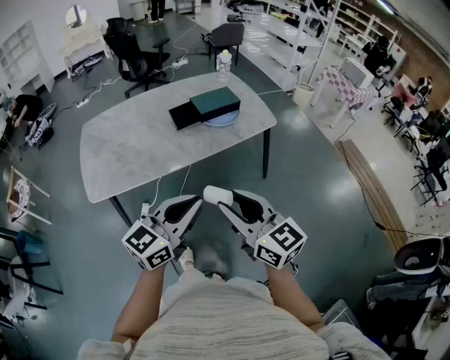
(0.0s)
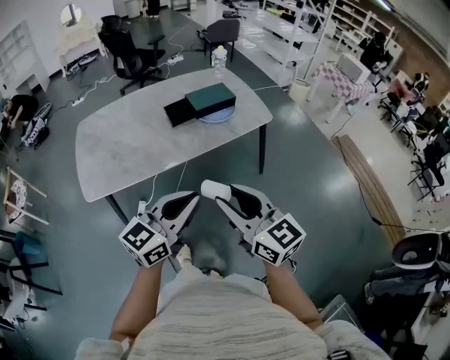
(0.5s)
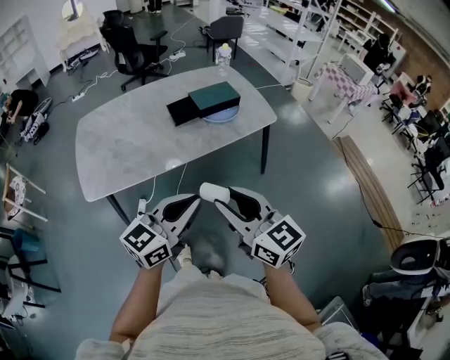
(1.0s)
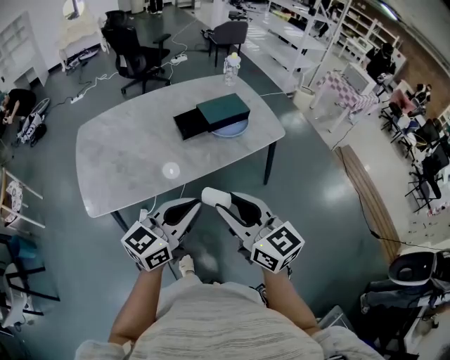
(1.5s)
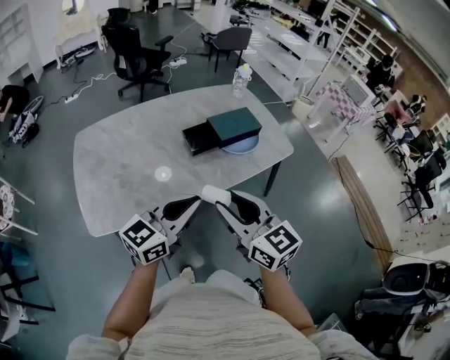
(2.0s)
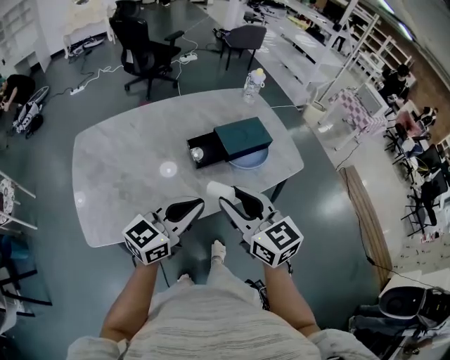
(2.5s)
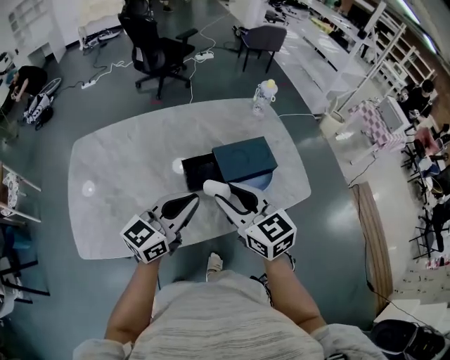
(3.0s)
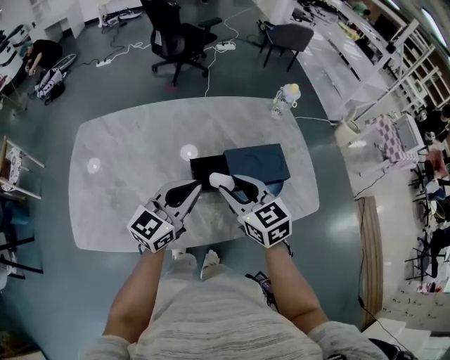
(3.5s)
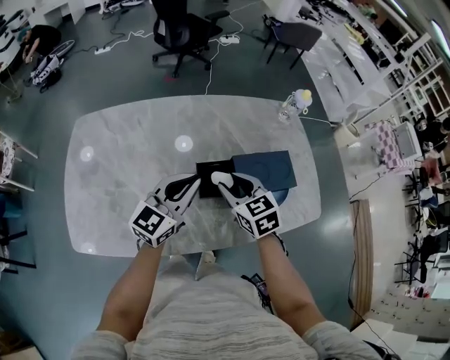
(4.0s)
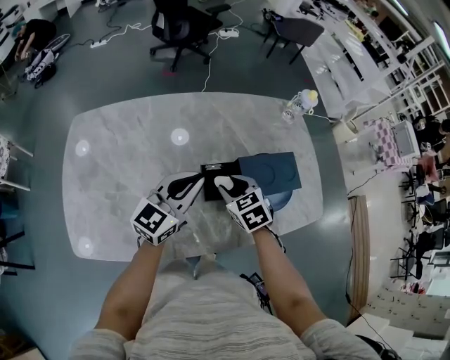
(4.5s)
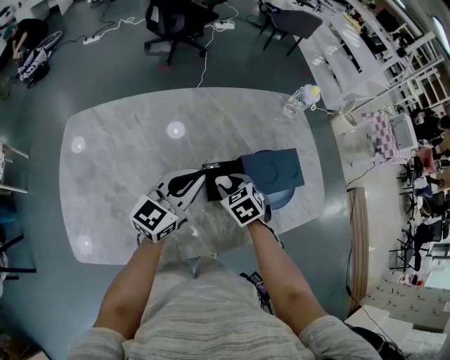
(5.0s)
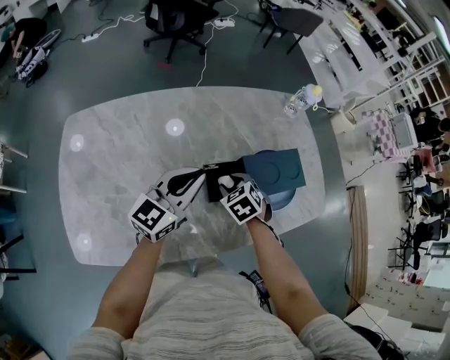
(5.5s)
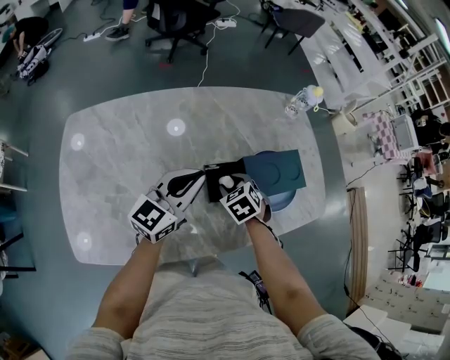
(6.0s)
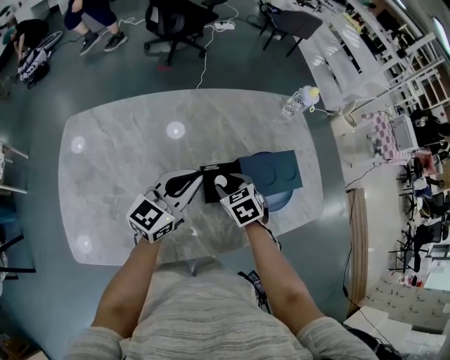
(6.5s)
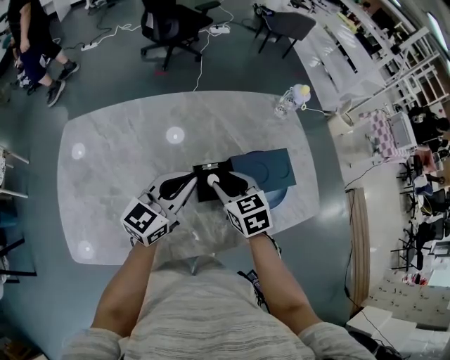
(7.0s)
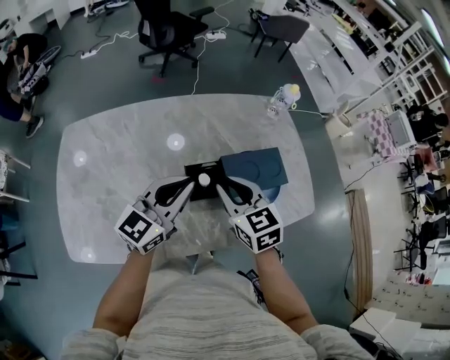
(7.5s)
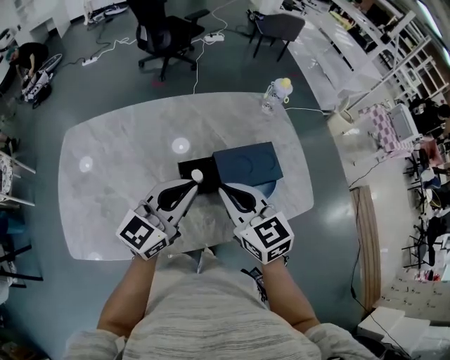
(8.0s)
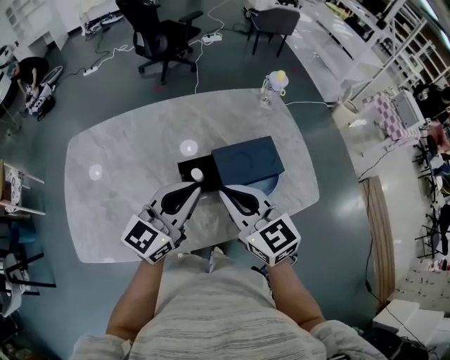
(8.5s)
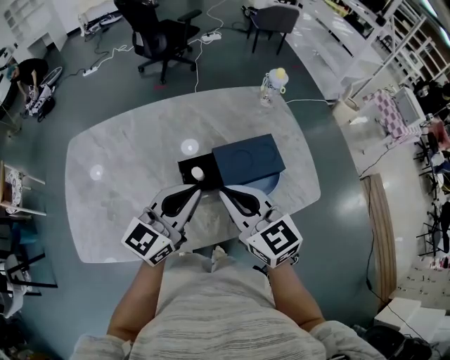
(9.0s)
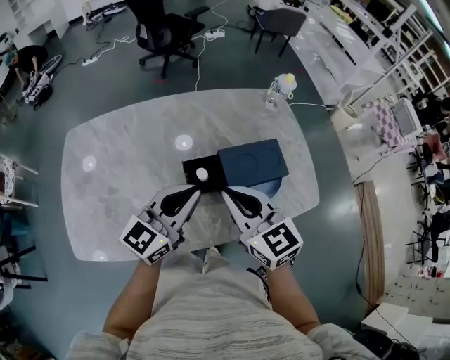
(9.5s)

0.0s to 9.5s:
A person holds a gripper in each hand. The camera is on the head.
0.0s to 2.0s: The grippers both shift forward and to the left by roughly 25 cm.
2.0s to 4.0s: The left gripper travels forward by about 35 cm, and changes its angle by about 30 degrees; the right gripper travels forward and downward by approximately 40 cm, and turns by about 30 degrees.
4.0s to 5.5s: The left gripper changes place by some 5 cm; the right gripper shifts approximately 10 cm downward, and swivels some 30 degrees.
5.5s to 7.5s: The left gripper shifts by some 10 cm. Meanwhile the right gripper travels upward by about 15 cm, and tilts its fingers approximately 30 degrees upward.
7.5s to 9.5s: The right gripper goes roughly 10 cm upward and backward.

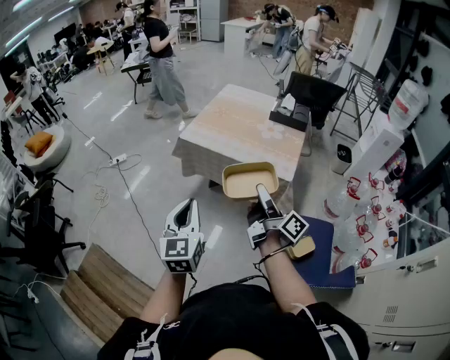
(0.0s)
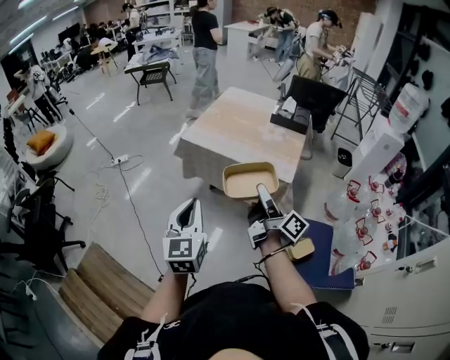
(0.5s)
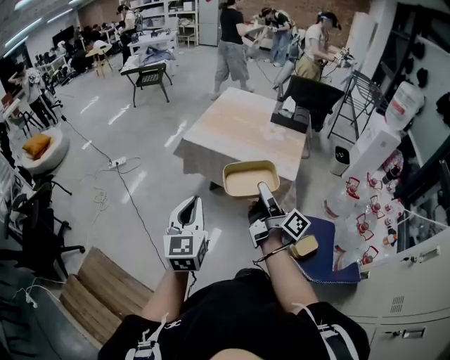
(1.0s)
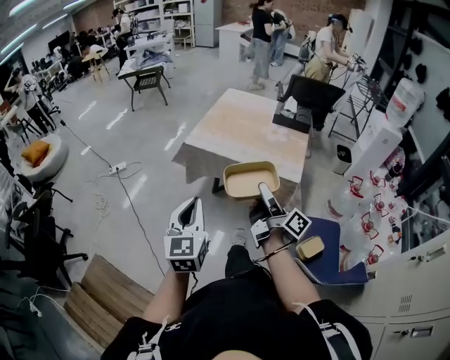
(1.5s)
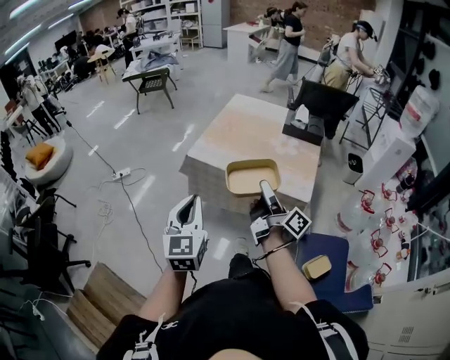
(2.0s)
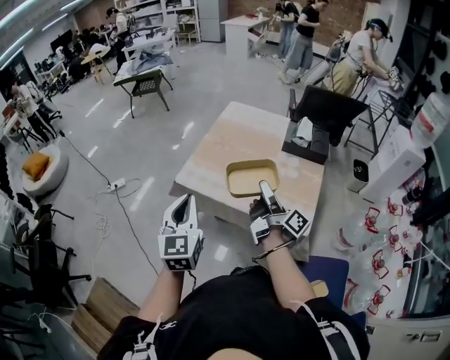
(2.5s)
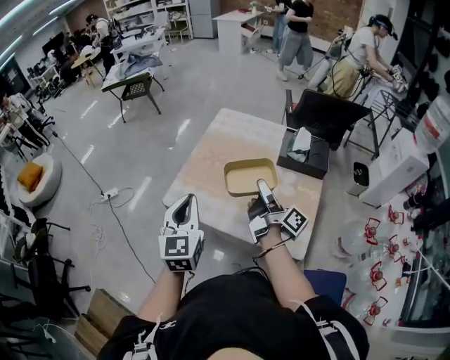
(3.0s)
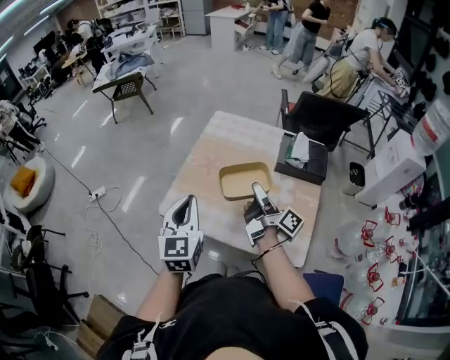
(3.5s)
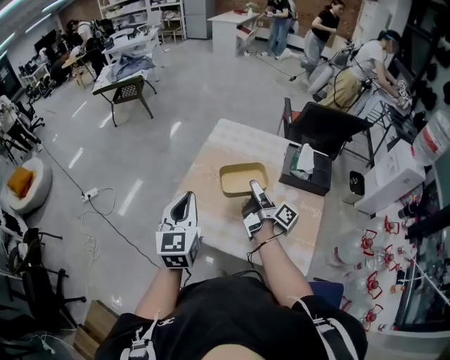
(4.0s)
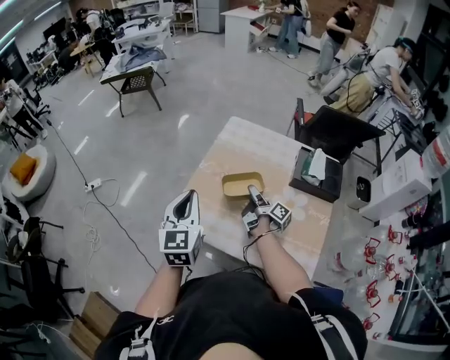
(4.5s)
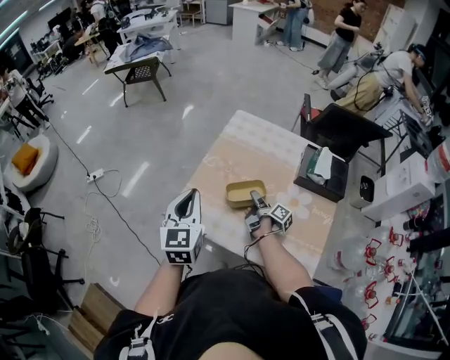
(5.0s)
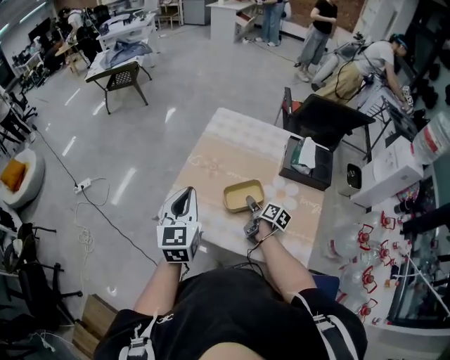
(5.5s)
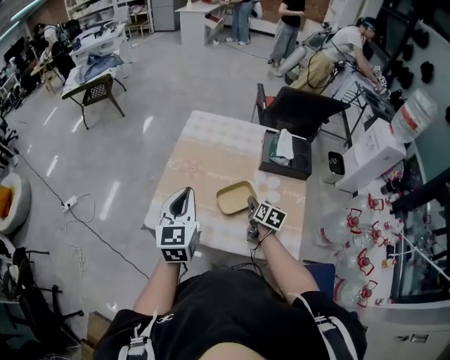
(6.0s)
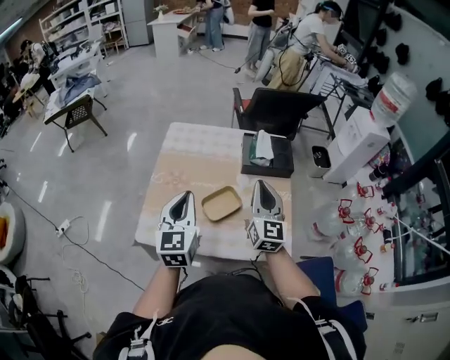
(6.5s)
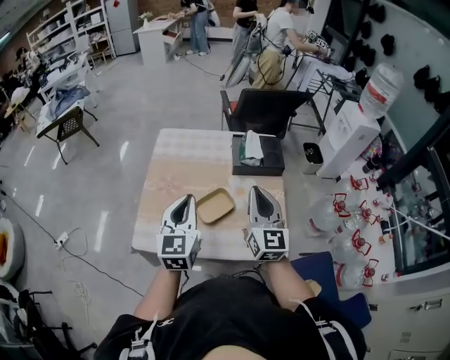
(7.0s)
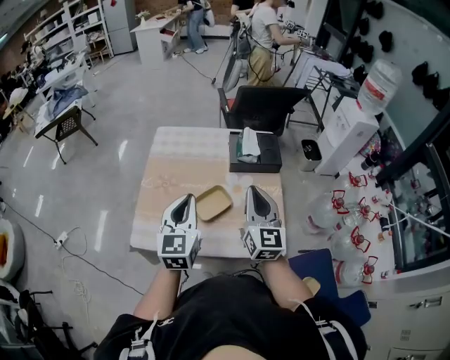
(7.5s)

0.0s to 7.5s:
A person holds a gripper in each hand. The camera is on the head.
0.0s to 2.0s: Both grippers move forward, about 15 cm.
2.0s to 4.0s: Both grippers are carried forward, approximately 60 cm.
4.0s to 5.5s: The right gripper moves downward, approximately 20 cm, and points its fingers roughly 40 degrees further downward.
5.5s to 7.5s: The left gripper changes place by about 15 cm, and rotates some 20 degrees. Meanwhile the right gripper is displaced upward by approximately 30 cm, tilts its fingers about 30 degrees upward, and closes.

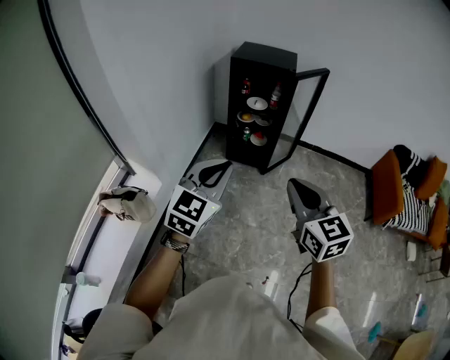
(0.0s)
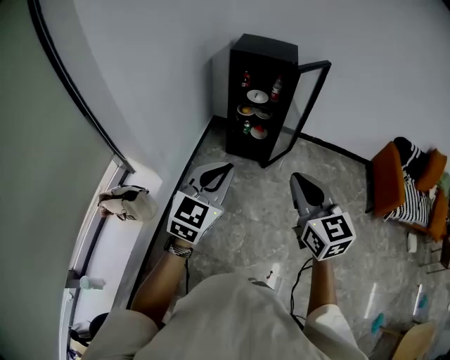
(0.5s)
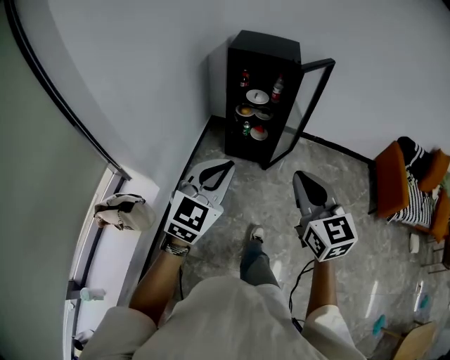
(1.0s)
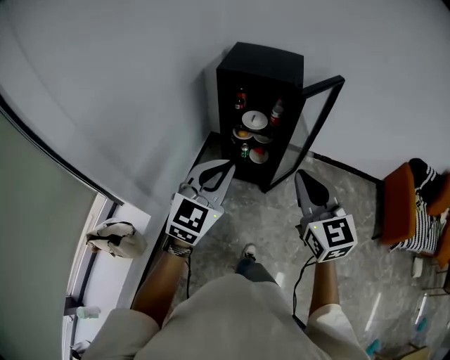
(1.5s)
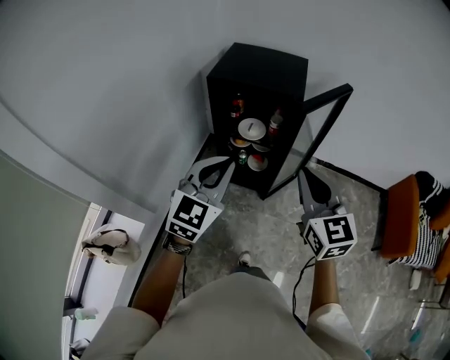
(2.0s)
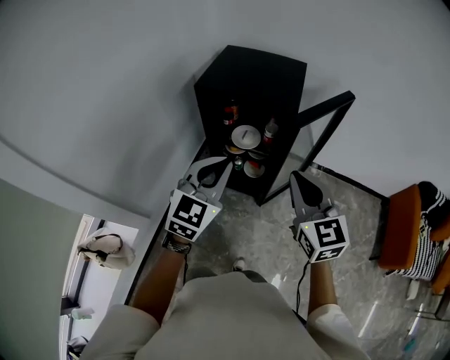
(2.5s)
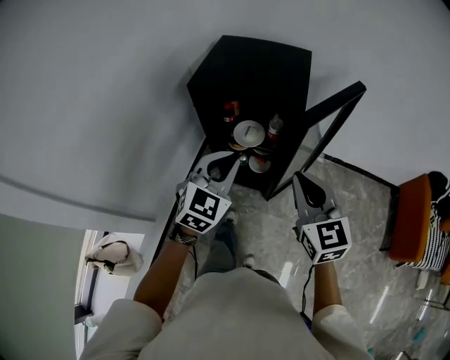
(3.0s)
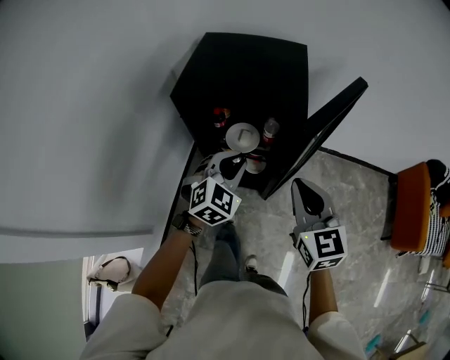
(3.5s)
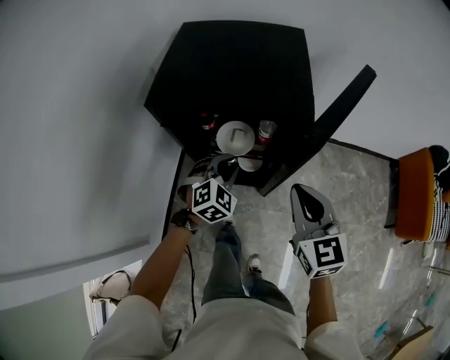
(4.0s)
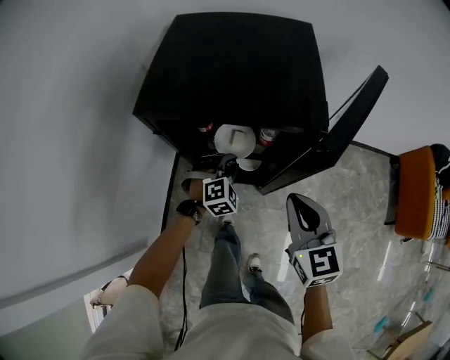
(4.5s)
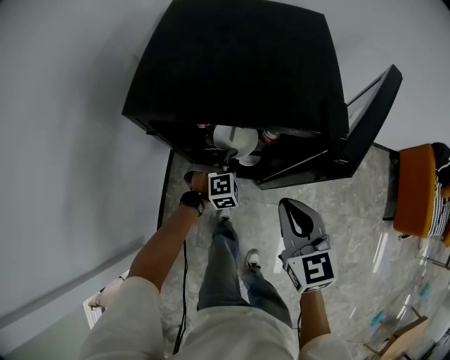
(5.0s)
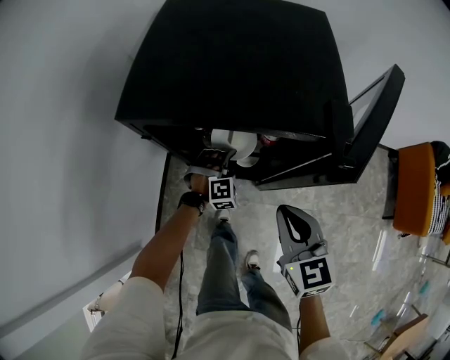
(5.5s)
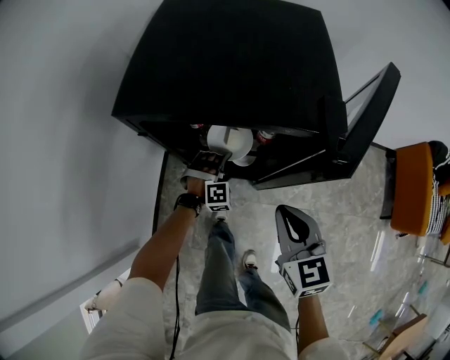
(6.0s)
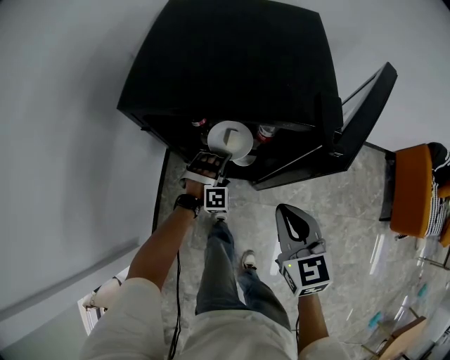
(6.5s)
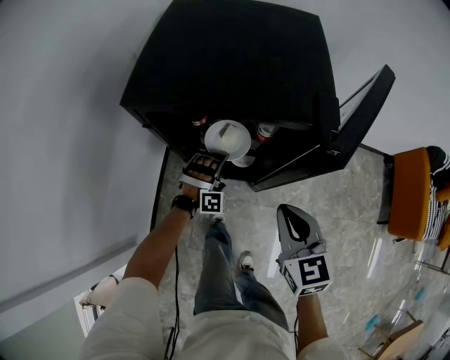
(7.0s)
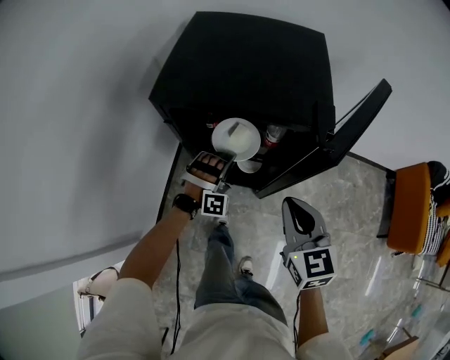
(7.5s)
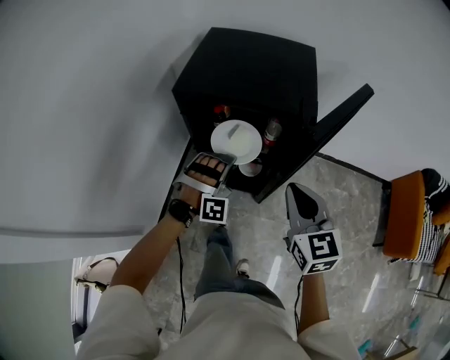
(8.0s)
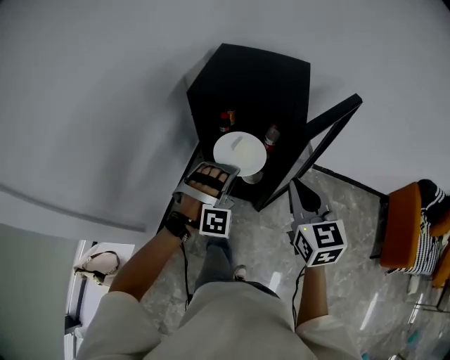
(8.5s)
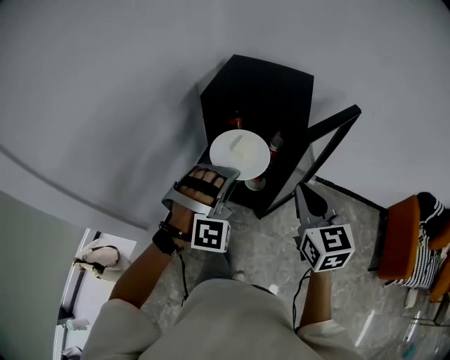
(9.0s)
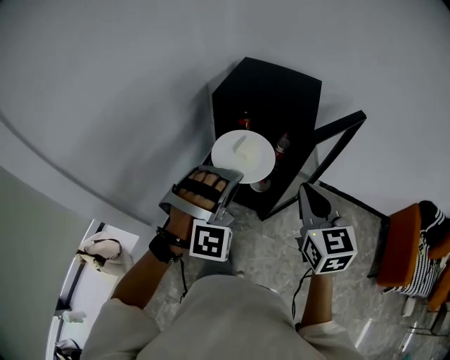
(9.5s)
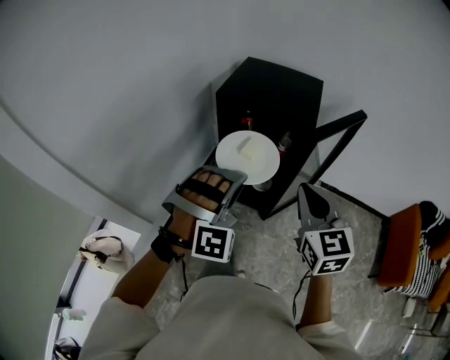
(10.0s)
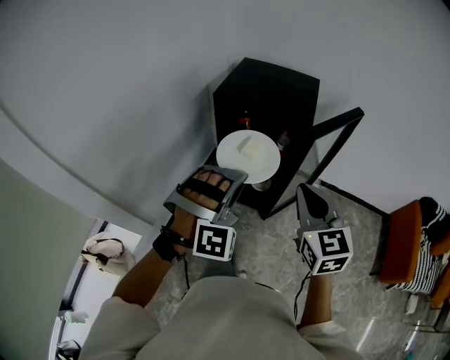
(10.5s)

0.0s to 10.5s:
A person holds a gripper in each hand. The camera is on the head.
0.0s to 2.0s: The two grippers travel together, forward, some 40 cm.
2.0s to 4.0s: The left gripper goes some 40 cm forward and downward, and points its fingers roughly 30 degrees further downward. The right gripper heads forward and downward, covering roughly 30 cm.
4.0s to 6.5s: The right gripper is displaced downward by some 10 cm; the left gripper travels downward and forward by some 15 cm, and rotates roughly 40 degrees.
6.5s to 8.5s: The right gripper goes about 20 cm upward and backward. Meanwhile the left gripper moves upward and backward, about 35 cm.
8.5s to 10.5s: The left gripper goes about 20 cm backward and upward. Meanwhile the right gripper shifts roughly 10 cm backward and upward.
